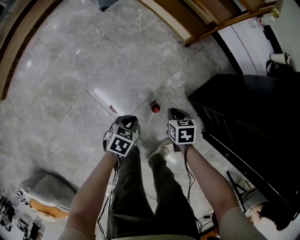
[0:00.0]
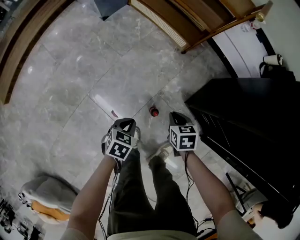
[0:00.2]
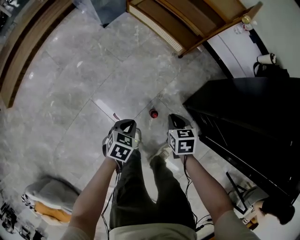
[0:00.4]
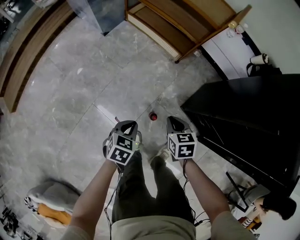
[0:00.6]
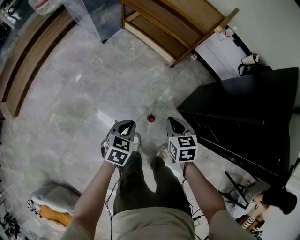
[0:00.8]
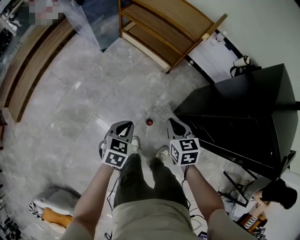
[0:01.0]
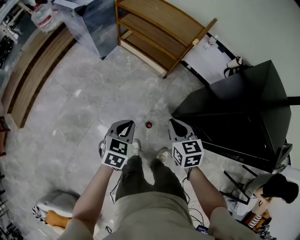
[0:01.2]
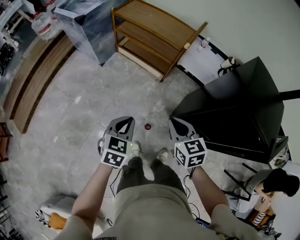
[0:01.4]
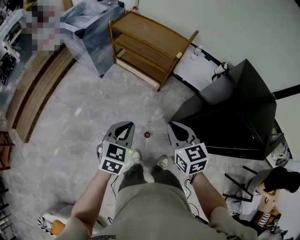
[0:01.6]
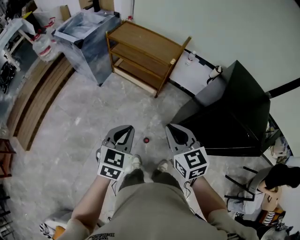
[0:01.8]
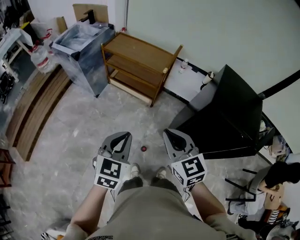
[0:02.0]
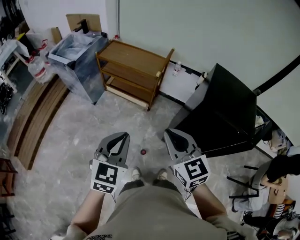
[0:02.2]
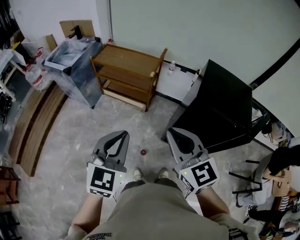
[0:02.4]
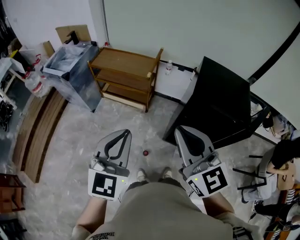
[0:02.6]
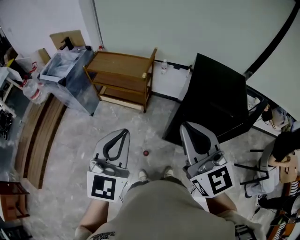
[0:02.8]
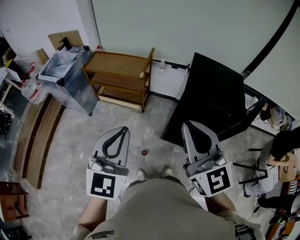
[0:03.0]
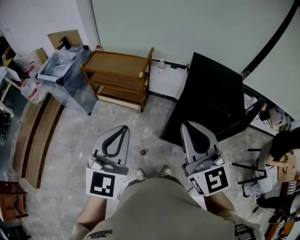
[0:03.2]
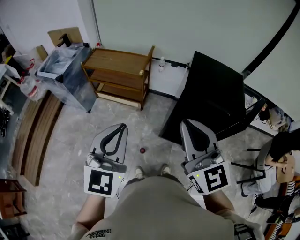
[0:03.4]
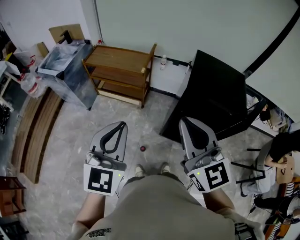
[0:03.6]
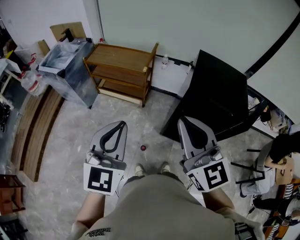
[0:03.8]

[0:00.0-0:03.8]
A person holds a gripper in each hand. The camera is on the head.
0:00.0 to 0:01.2: Both grippers move upward, roughly 40 cm. The right gripper rotates roughly 30 degrees. The left gripper changes its angle by approximately 20 degrees.
0:01.2 to 0:02.6: Both grippers move upward, some 40 cm. The right gripper tips its fingers upward by about 40 degrees; the left gripper angles its fingers upward, by roughly 40 degrees.
0:02.6 to 0:03.8: There are only small adjustments of the grippers.

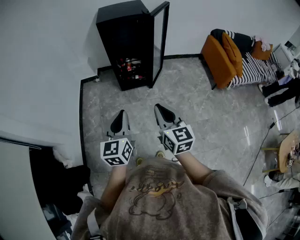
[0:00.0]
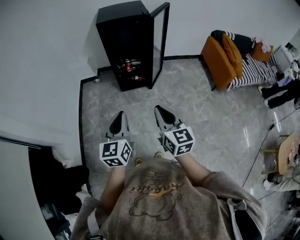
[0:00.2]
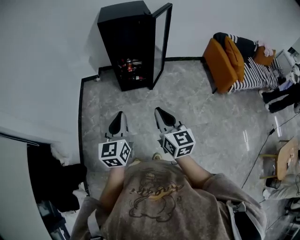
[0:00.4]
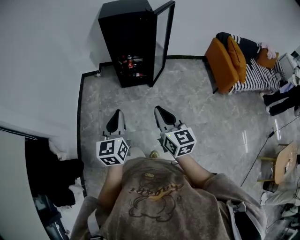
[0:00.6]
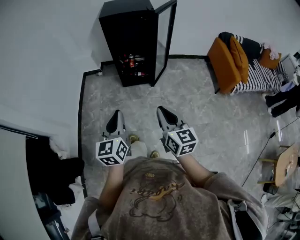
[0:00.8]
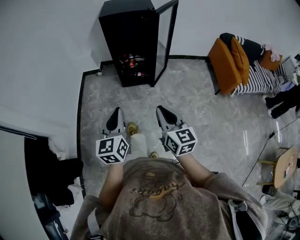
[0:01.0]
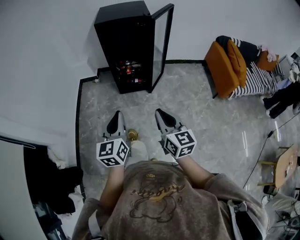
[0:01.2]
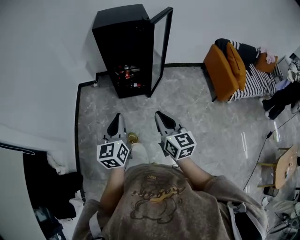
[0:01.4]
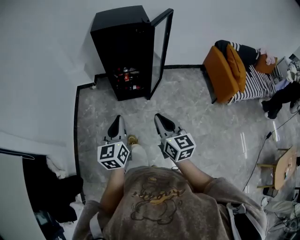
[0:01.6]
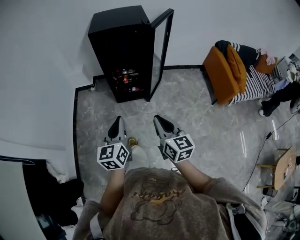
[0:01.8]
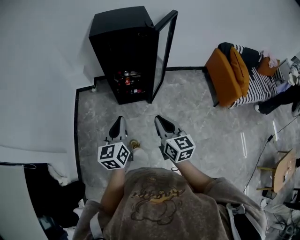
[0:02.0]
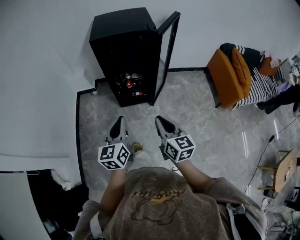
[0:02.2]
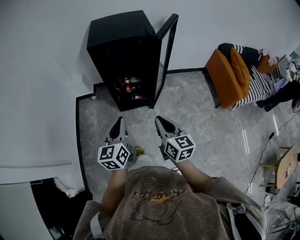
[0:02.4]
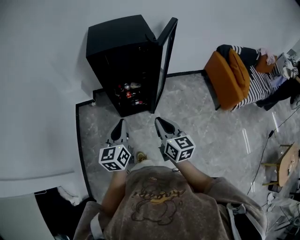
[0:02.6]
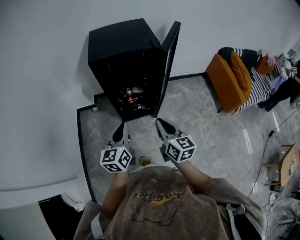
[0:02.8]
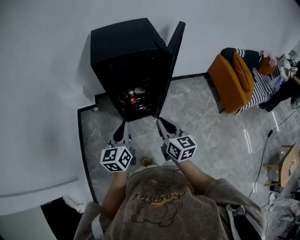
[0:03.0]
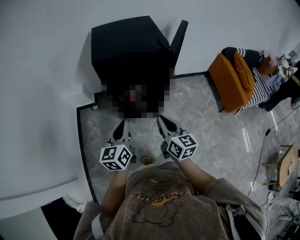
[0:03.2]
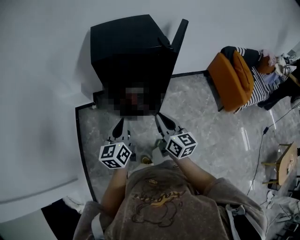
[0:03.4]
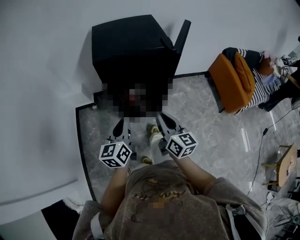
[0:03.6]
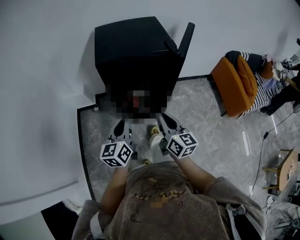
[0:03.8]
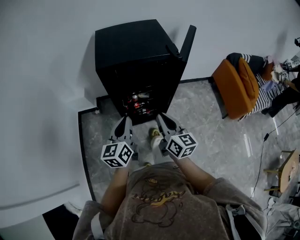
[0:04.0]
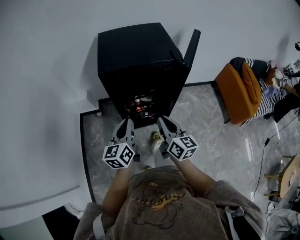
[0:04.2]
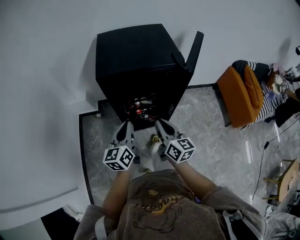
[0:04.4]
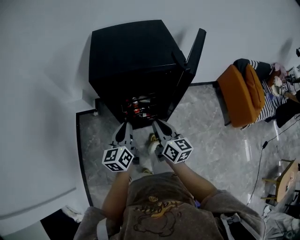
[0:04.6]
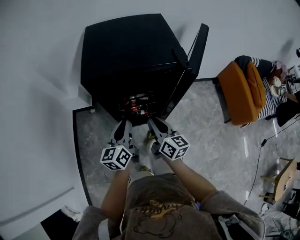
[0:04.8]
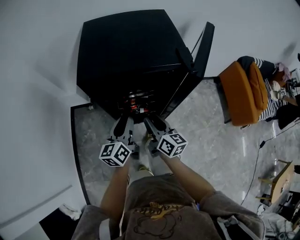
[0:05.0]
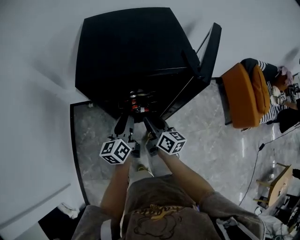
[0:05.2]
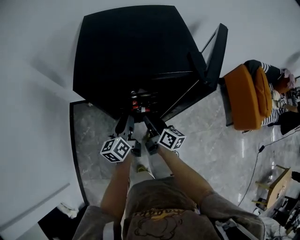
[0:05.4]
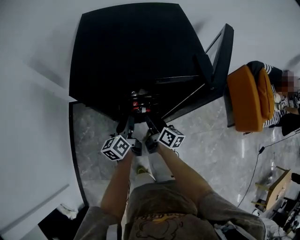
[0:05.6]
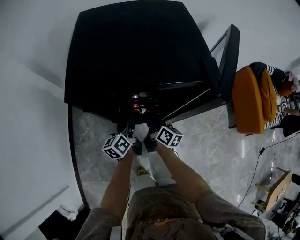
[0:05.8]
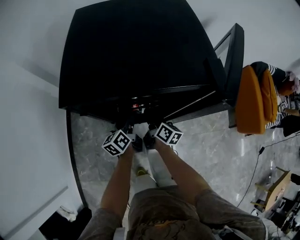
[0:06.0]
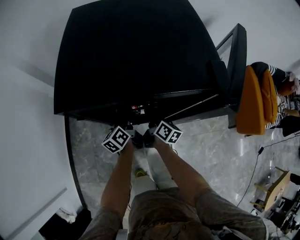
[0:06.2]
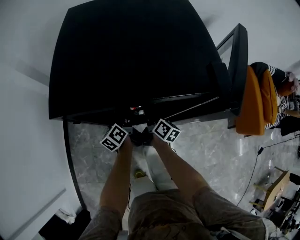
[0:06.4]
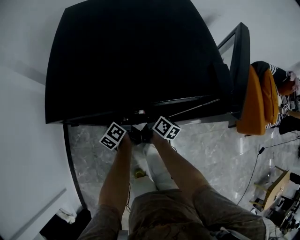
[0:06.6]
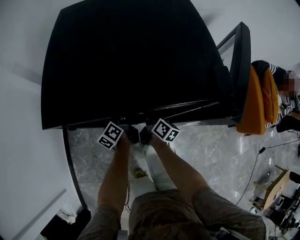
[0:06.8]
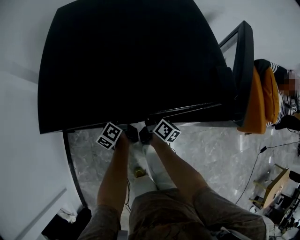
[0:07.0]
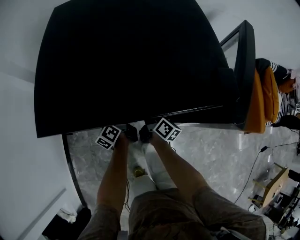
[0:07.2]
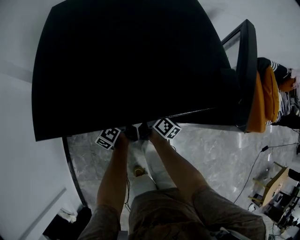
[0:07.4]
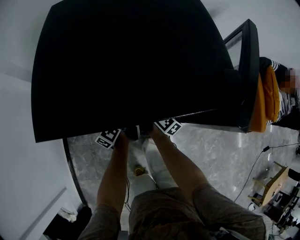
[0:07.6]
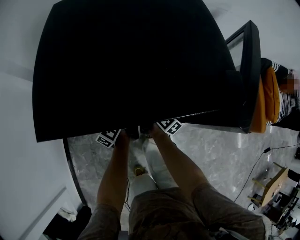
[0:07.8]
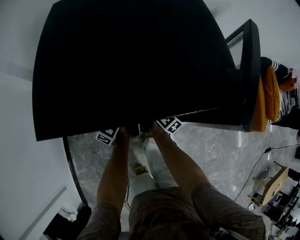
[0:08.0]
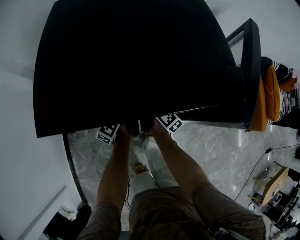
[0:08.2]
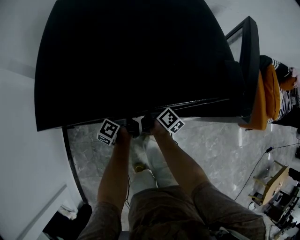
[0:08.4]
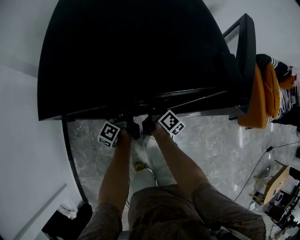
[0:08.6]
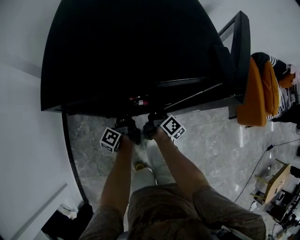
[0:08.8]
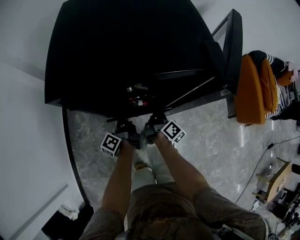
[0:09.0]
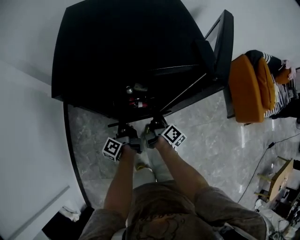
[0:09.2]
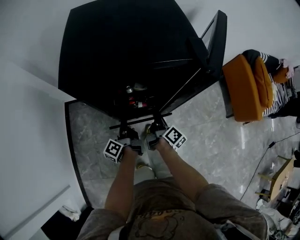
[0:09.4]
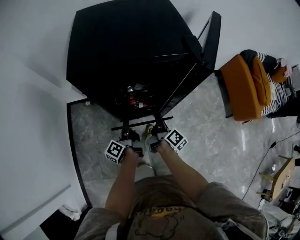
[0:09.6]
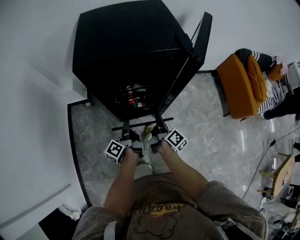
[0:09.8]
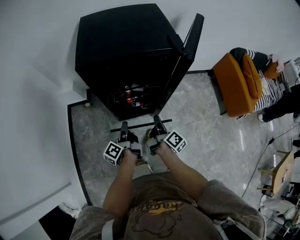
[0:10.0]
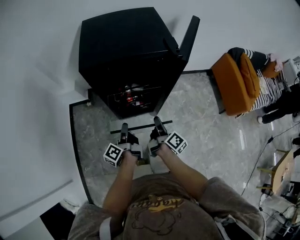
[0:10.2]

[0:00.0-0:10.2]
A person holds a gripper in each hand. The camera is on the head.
0:00.0 to 0:01.4: The right gripper goes some 10 cm forward and to the right; the left gripper moves forward, some 10 cm.
0:01.4 to 0:03.0: Both grippers travel together forward, some 30 cm.
0:03.0 to 0:04.4: Both grippers move forward, approximately 15 cm.
0:04.4 to 0:05.8: The two grippers go approximately 25 cm downward and forward. The right gripper changes its angle by roughly 30 degrees, and opens. The left gripper turns by approximately 20 degrees, and opens.
0:05.8 to 0:07.2: The right gripper shifts some 10 cm forward, while the left gripper travels forward and downward by roughly 10 cm.
0:07.2 to 0:08.8: The left gripper travels backward by about 5 cm, and closes.
0:08.8 to 0:10.2: Both grippers move backward and upward, approximately 25 cm.

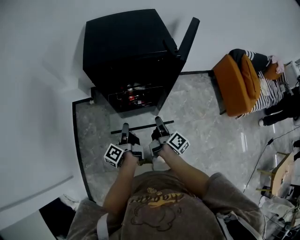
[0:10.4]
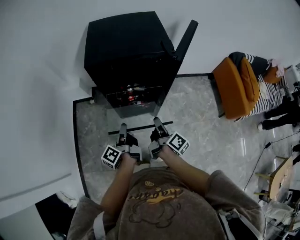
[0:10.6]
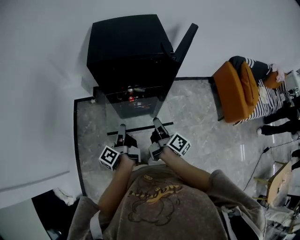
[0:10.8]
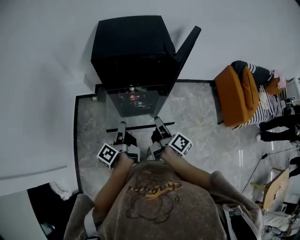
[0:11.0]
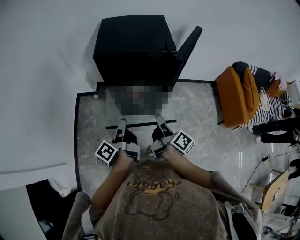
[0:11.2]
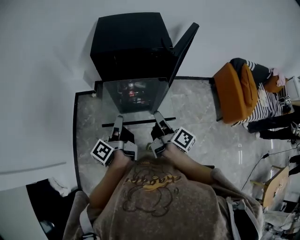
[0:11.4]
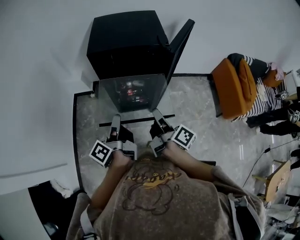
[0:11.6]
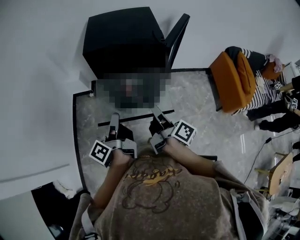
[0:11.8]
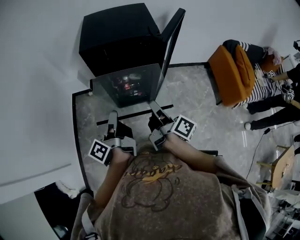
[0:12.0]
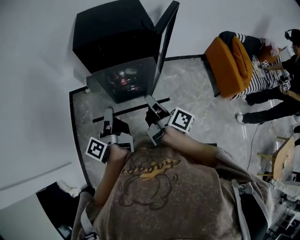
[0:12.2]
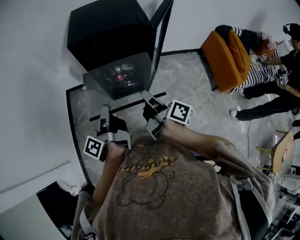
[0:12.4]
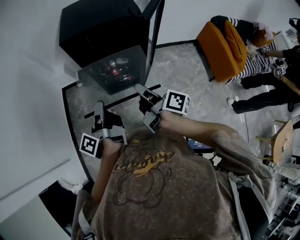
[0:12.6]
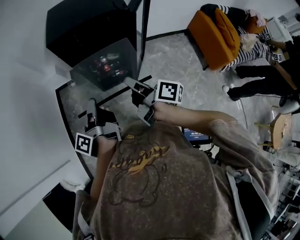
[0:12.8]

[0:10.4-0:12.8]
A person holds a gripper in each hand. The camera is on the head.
0:10.4 to 0:11.6: The grippers both shift upward and backward by some 15 cm.
0:11.6 to 0:12.8: The grippers make only small movements.

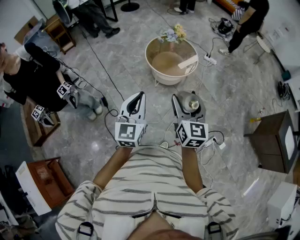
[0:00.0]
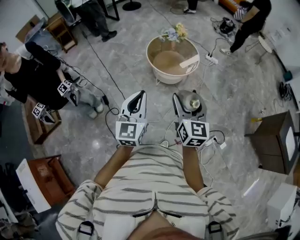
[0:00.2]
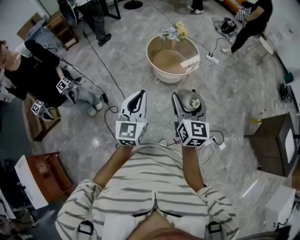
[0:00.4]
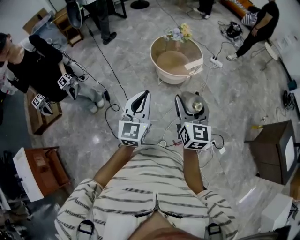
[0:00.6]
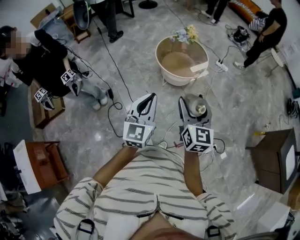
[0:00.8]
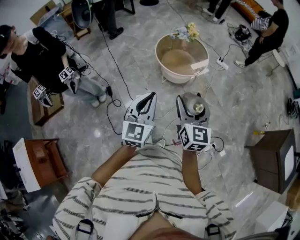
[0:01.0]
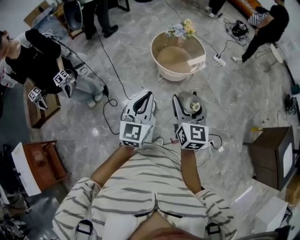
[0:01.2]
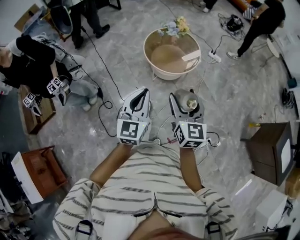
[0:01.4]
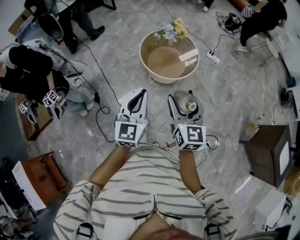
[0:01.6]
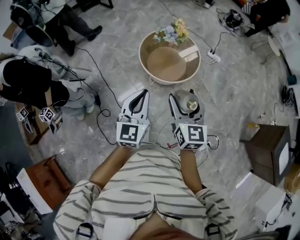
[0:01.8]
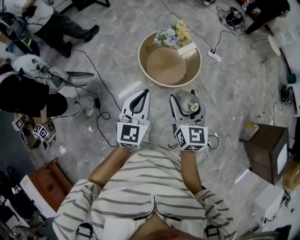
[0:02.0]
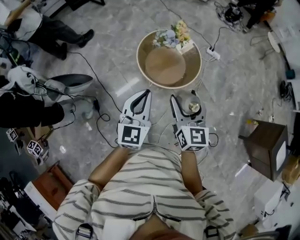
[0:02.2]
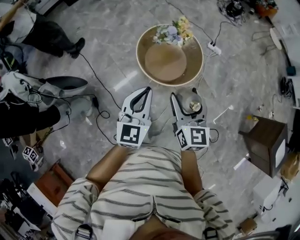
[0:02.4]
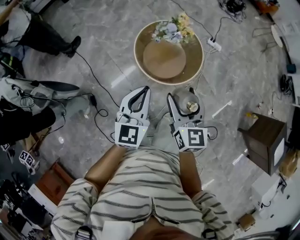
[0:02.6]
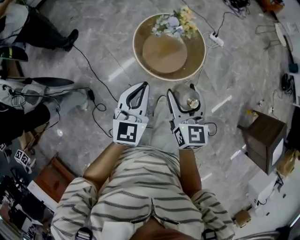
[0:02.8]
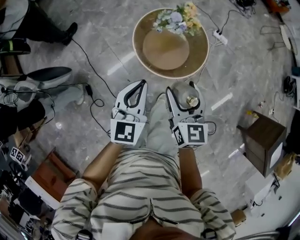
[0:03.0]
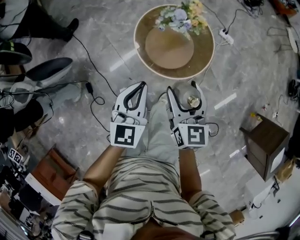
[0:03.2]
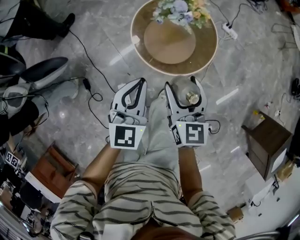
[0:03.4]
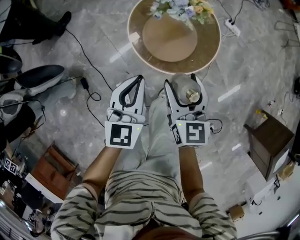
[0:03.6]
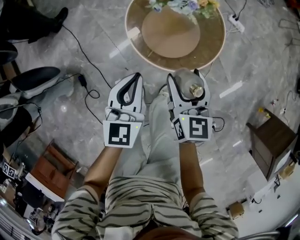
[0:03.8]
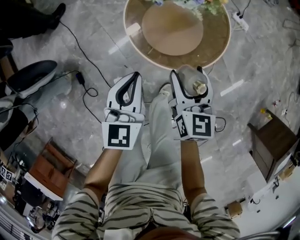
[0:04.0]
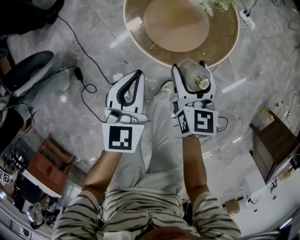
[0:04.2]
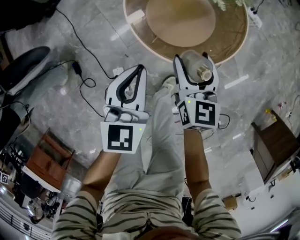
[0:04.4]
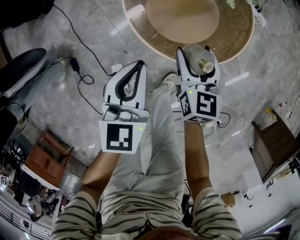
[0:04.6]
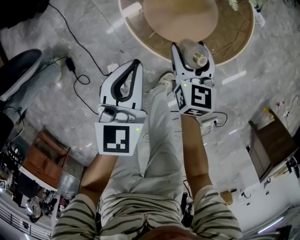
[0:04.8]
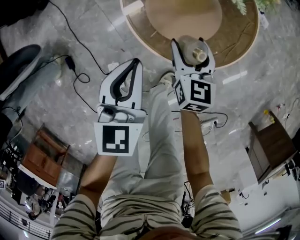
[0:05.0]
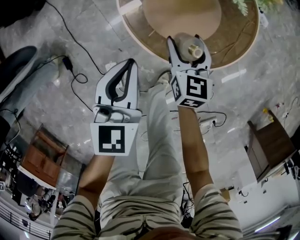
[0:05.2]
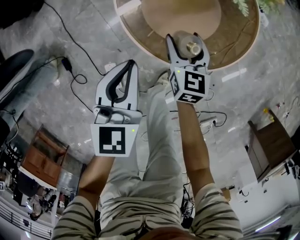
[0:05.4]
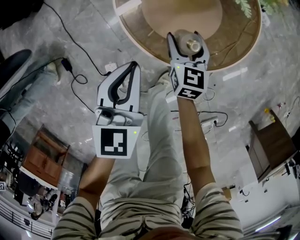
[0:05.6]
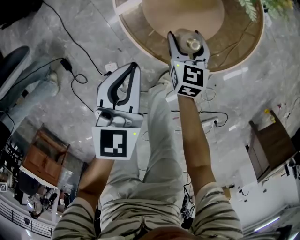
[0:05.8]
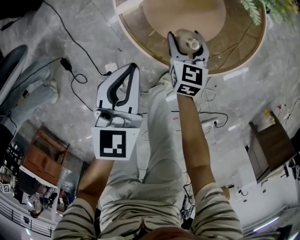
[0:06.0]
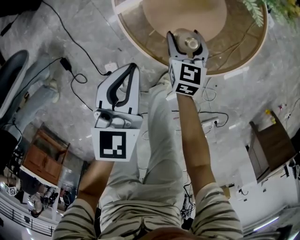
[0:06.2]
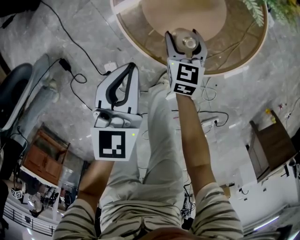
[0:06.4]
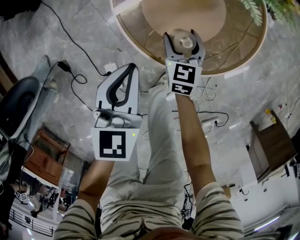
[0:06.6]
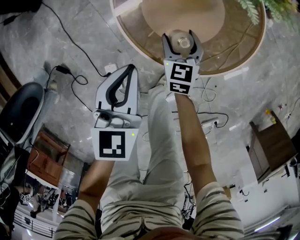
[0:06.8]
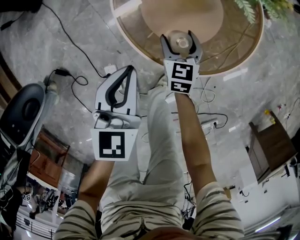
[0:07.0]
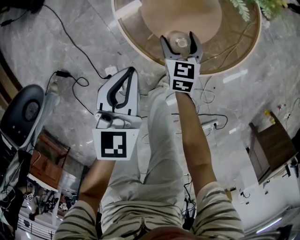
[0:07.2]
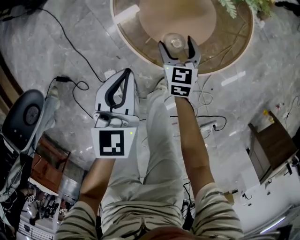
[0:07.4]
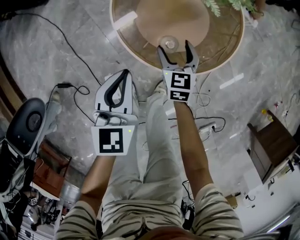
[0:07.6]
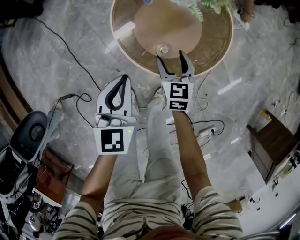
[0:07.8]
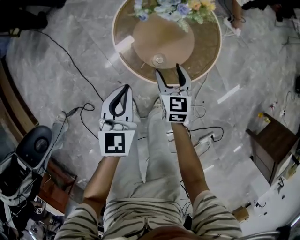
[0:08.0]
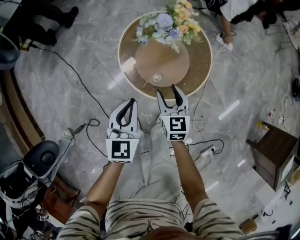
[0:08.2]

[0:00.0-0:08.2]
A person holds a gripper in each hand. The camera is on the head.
0:00.0 to 0:01.6: The right gripper moves forward, roughly 15 cm; the left gripper goes approximately 15 cm forward and to the right.
0:01.6 to 0:03.2: The grippers both shift forward and downward by some 30 cm.
0:03.2 to 0:05.0: The two grippers go about 35 cm downward.
0:05.0 to 0:06.6: The right gripper shifts some 10 cm downward. The left gripper heads downward, covering roughly 5 cm.
0:06.6 to 0:08.2: Both grippers move upward, some 20 cm.
